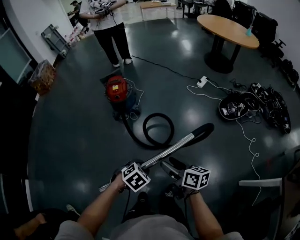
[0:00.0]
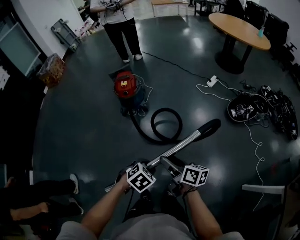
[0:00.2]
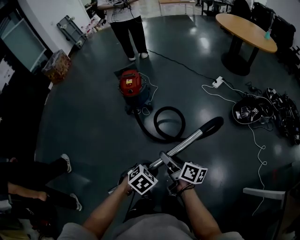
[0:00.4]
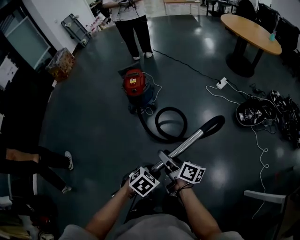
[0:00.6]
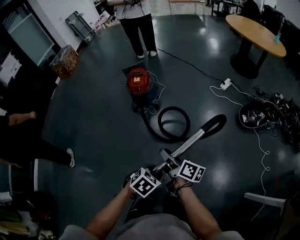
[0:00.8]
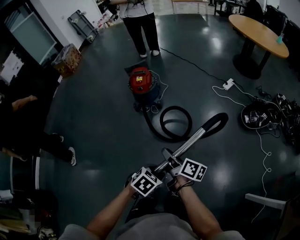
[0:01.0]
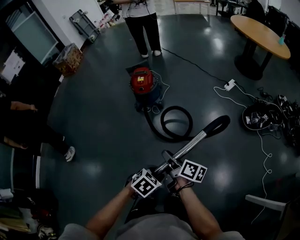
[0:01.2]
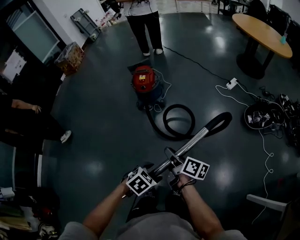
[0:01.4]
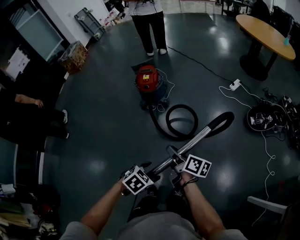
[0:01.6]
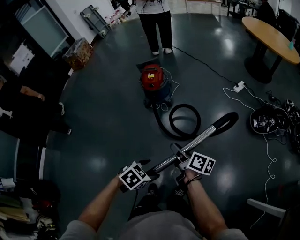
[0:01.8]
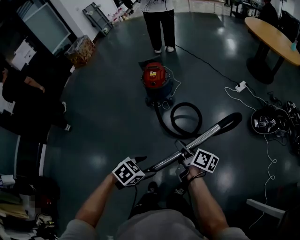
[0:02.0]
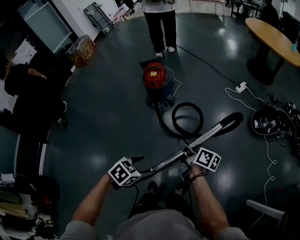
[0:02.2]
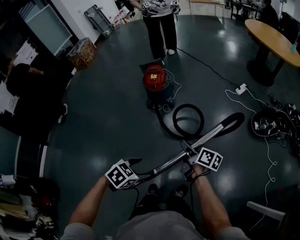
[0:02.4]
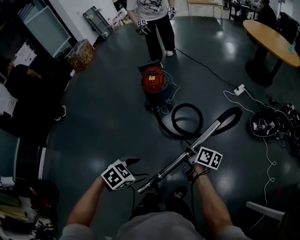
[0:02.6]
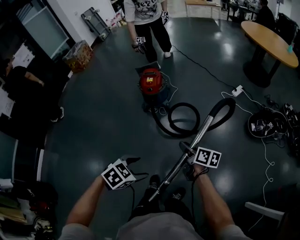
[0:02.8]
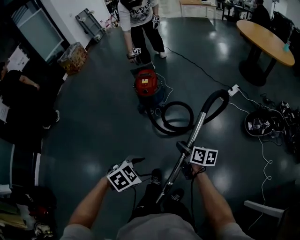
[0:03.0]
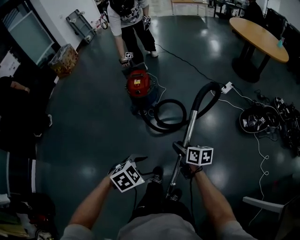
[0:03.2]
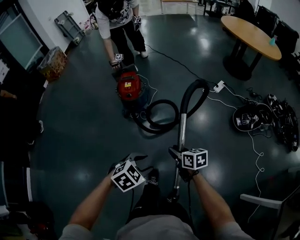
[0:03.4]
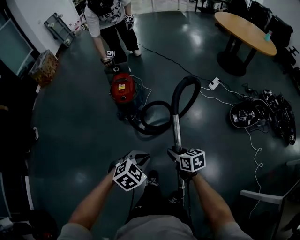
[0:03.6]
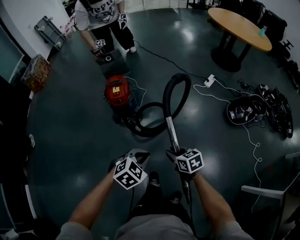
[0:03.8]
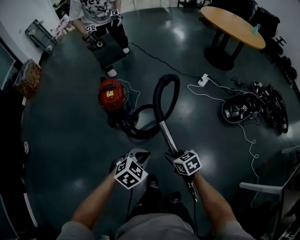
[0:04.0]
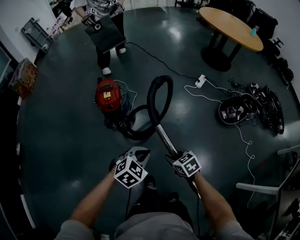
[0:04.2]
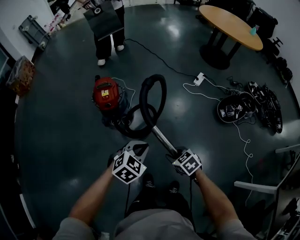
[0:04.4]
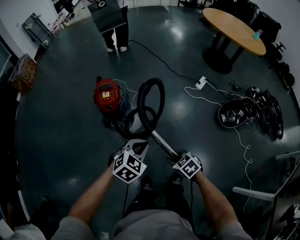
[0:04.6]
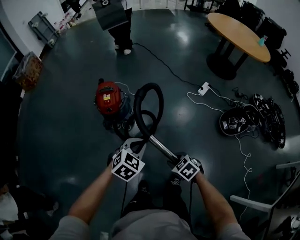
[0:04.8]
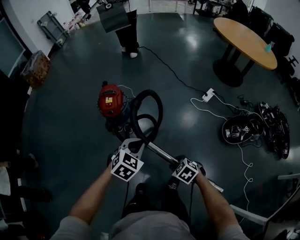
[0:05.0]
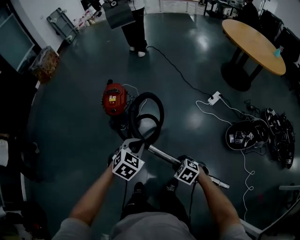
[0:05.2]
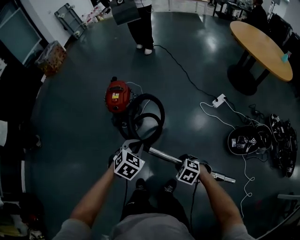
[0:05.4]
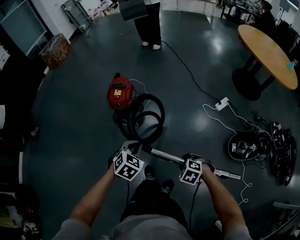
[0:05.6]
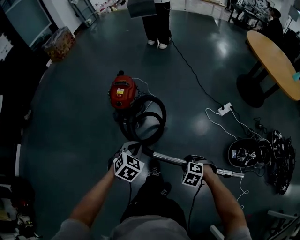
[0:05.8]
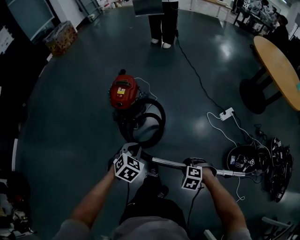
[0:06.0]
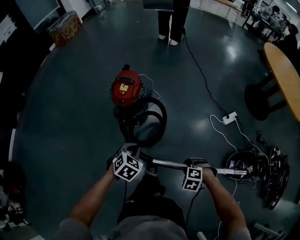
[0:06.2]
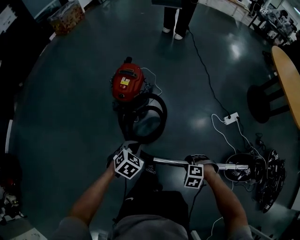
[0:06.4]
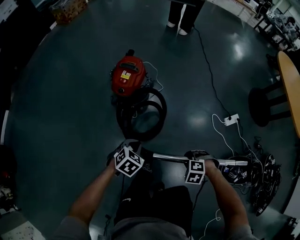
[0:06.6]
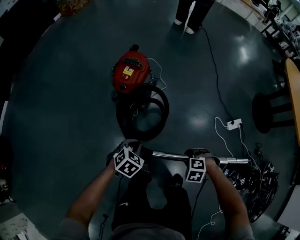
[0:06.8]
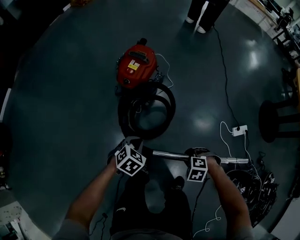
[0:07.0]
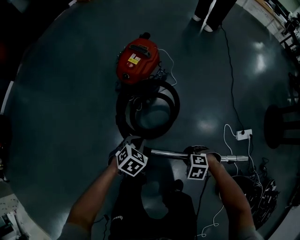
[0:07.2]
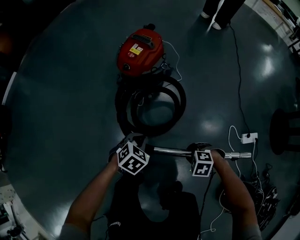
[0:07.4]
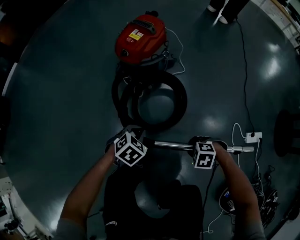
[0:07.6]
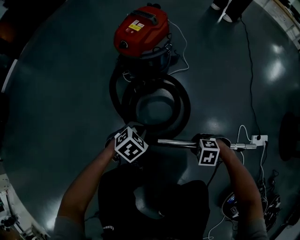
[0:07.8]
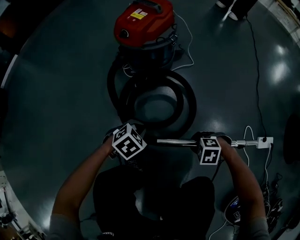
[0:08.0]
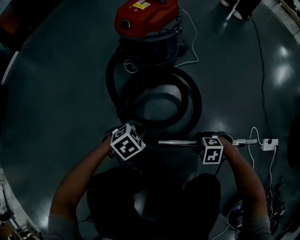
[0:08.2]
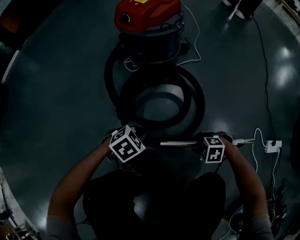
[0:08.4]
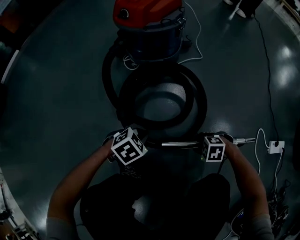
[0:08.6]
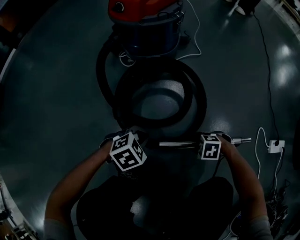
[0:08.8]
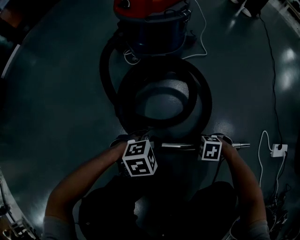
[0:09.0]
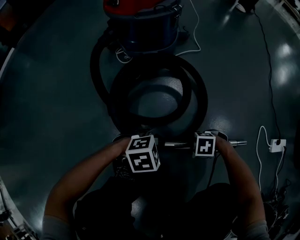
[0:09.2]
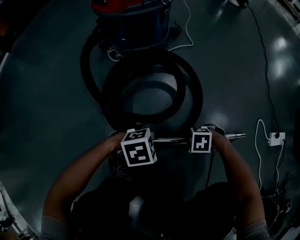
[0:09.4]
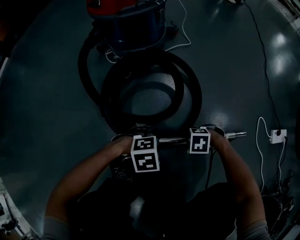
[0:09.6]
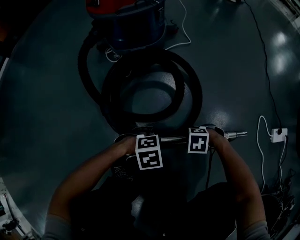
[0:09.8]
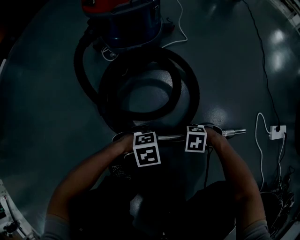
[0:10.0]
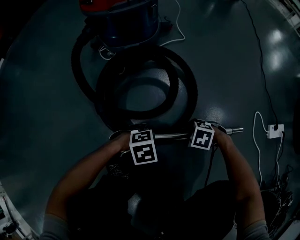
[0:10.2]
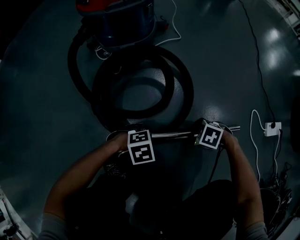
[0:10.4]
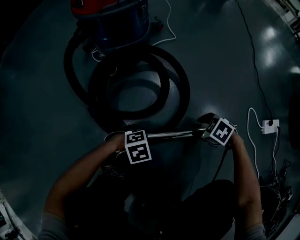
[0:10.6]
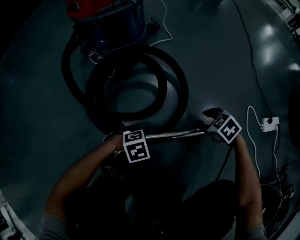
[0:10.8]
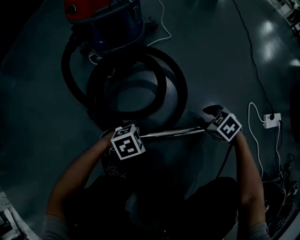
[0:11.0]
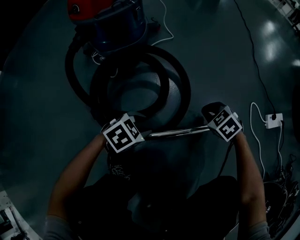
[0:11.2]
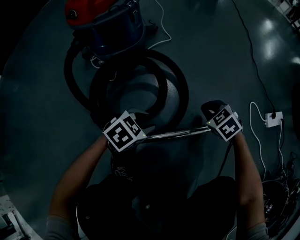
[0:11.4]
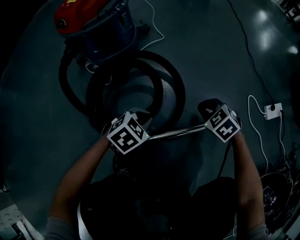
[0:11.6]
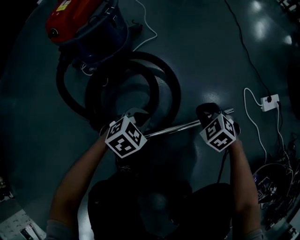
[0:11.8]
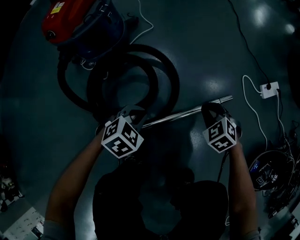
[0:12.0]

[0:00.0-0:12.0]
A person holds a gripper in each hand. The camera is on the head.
0:00.0 to 0:01.6: The left gripper opens up, while the right gripper goes approximately 10 cm forward and to the left, and closes.
0:01.6 to 0:03.0: The left gripper is displaced upward by approximately 5 cm, while the right gripper goes roughly 5 cm forward, and swivels approximately 20 degrees.
0:03.0 to 0:04.4: The left gripper shifts some 30 cm forward, swivels roughly 20 degrees, and closes its fingers. The right gripper moves forward and downward, about 15 cm, and tilts its fingers some 30 degrees downward.
0:04.4 to 0:06.0: The right gripper changes place by some 25 cm, and rolls counterclockwise, seen from behind, by approximately 60 degrees. The left gripper changes place by some 20 cm, and turns by approximately 40 degrees.
0:06.0 to 0:07.6: Both grippers move downward, about 35 cm. The right gripper swivels approximately 40 degrees. The left gripper rotates some 20 degrees.
0:07.6 to 0:09.0: The grippers both shift downward by about 30 cm. The left gripper changes its angle by approximately 30 degrees.
0:09.0 to 0:10.4: The left gripper heads downward, covering about 10 cm, and opens up. Meanwhile the right gripper shifts approximately 5 cm to the left, swivels roughly 20 degrees, and opens.
0:10.4 to 0:12.0: The grippers both shift upward by about 15 cm. The left gripper closes its fingers. Meanwhile the right gripper changes its angle by some 50 degrees, and closes.

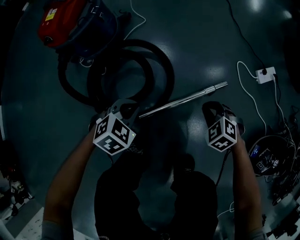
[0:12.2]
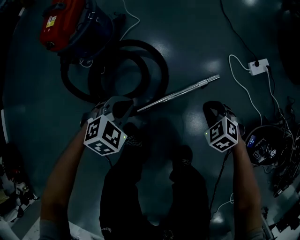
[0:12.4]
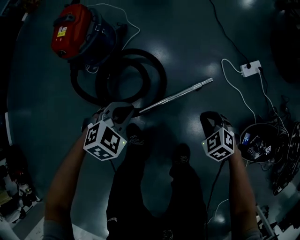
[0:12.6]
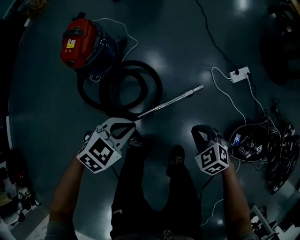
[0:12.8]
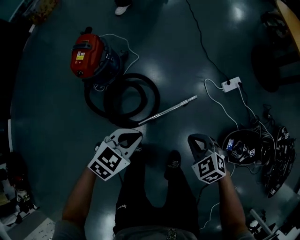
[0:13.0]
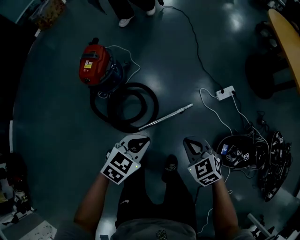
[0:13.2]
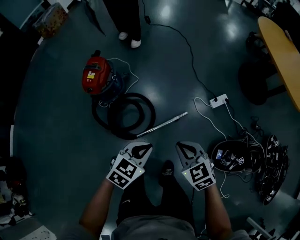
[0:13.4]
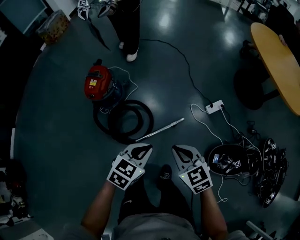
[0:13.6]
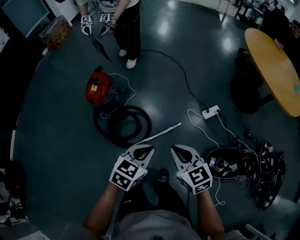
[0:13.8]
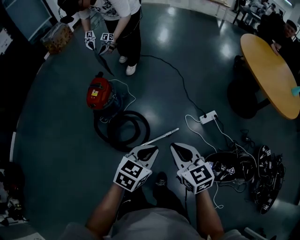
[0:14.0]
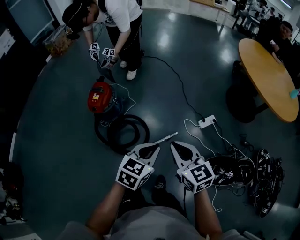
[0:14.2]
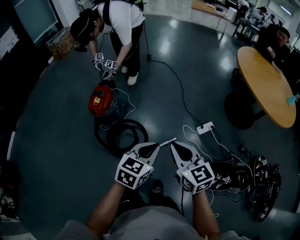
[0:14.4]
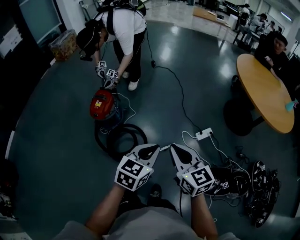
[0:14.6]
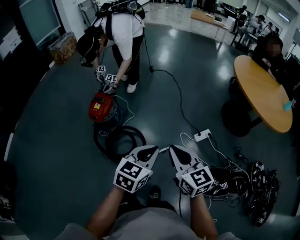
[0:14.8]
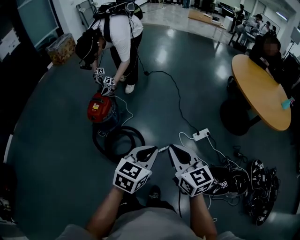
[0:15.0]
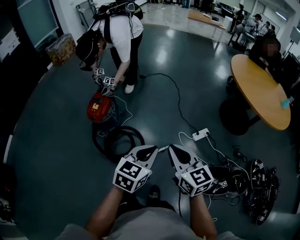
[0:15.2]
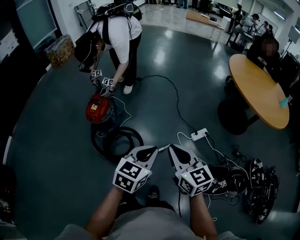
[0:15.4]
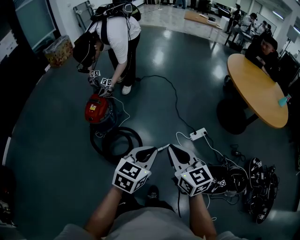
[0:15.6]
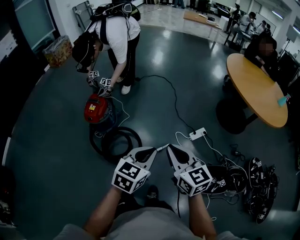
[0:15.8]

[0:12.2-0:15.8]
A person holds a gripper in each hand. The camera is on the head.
0:12.2 to 0:14.0: The two grippers go approximately 70 cm upward. The left gripper turns by about 30 degrees. Meanwhile the right gripper points its fingers about 40 degrees further upward.
0:14.0 to 0:15.8: Both grippers move upward, approximately 10 cm.

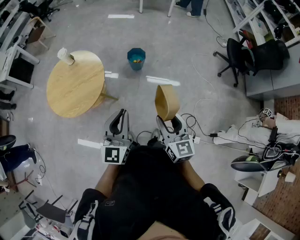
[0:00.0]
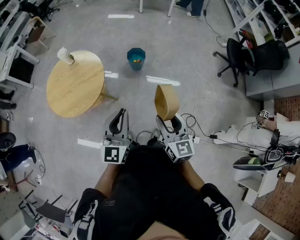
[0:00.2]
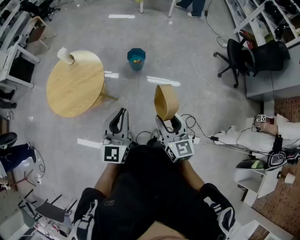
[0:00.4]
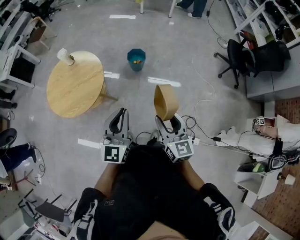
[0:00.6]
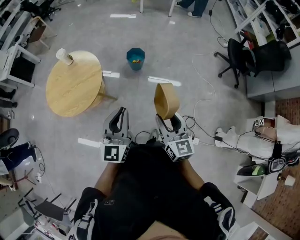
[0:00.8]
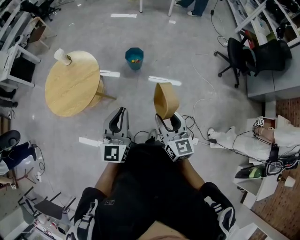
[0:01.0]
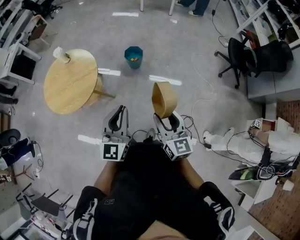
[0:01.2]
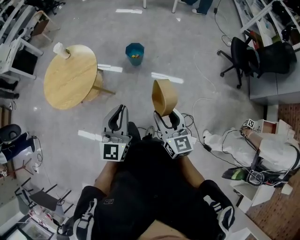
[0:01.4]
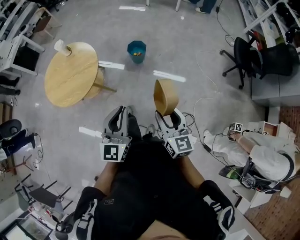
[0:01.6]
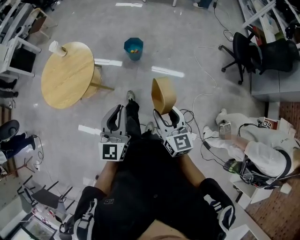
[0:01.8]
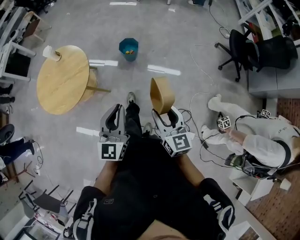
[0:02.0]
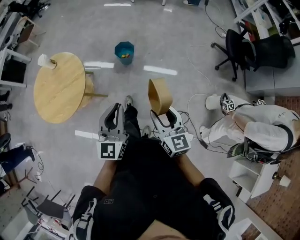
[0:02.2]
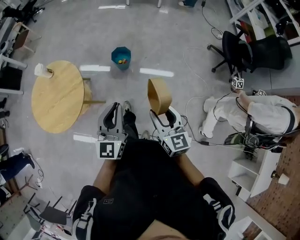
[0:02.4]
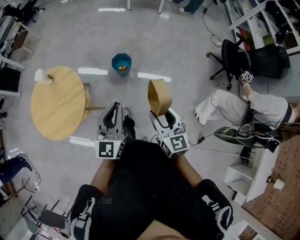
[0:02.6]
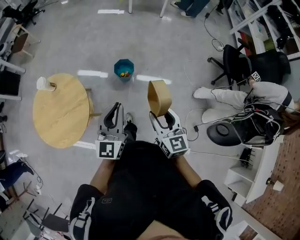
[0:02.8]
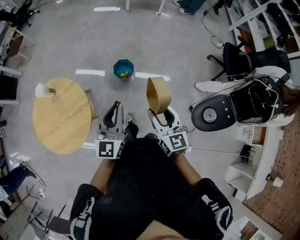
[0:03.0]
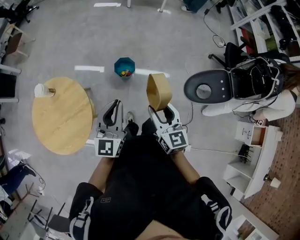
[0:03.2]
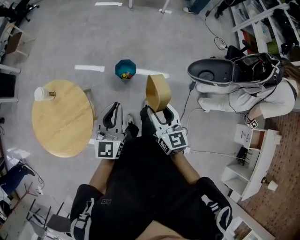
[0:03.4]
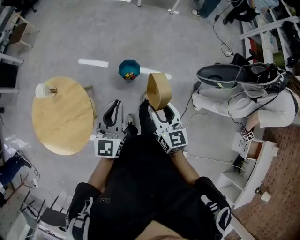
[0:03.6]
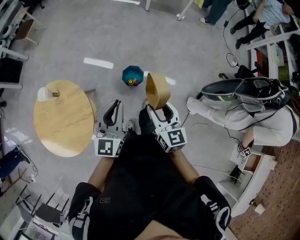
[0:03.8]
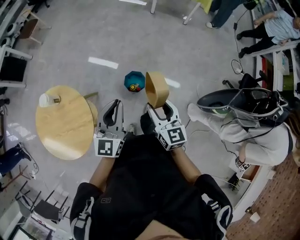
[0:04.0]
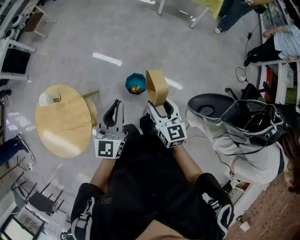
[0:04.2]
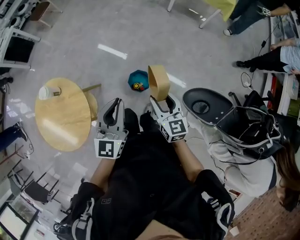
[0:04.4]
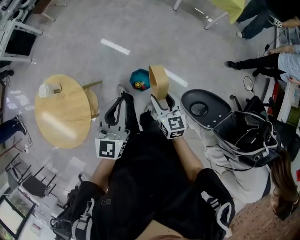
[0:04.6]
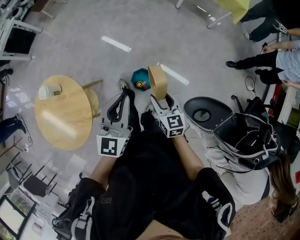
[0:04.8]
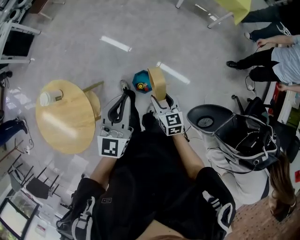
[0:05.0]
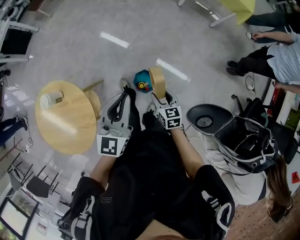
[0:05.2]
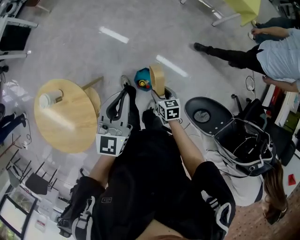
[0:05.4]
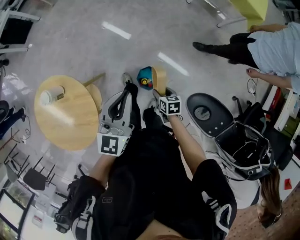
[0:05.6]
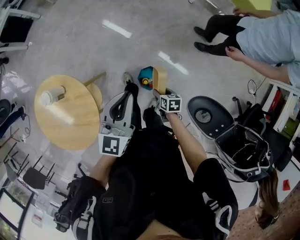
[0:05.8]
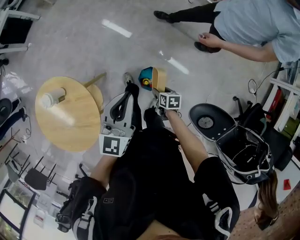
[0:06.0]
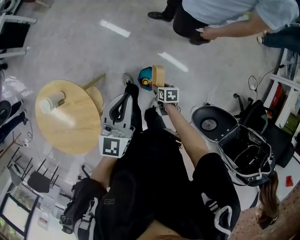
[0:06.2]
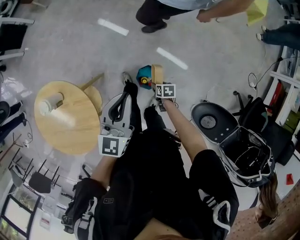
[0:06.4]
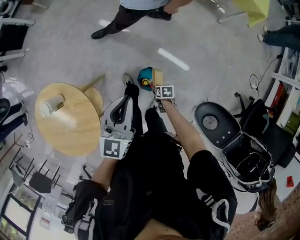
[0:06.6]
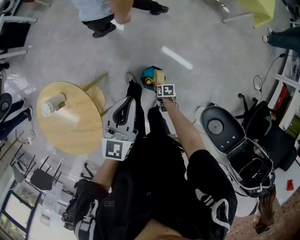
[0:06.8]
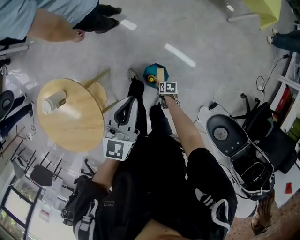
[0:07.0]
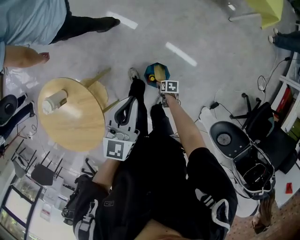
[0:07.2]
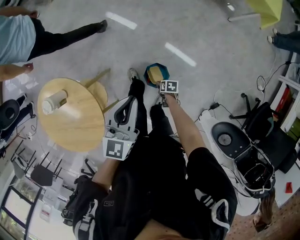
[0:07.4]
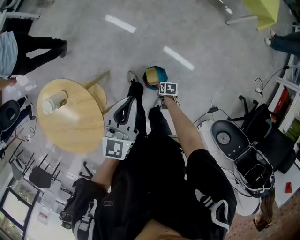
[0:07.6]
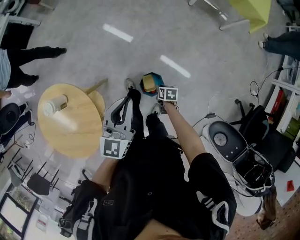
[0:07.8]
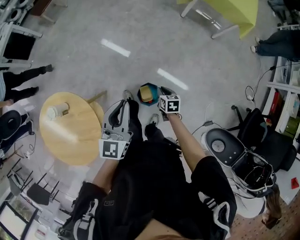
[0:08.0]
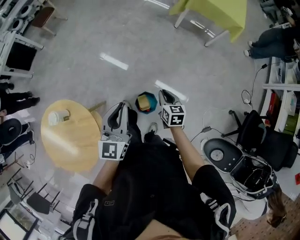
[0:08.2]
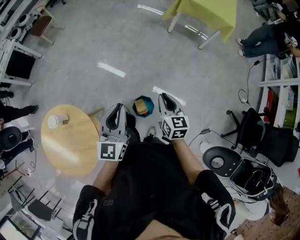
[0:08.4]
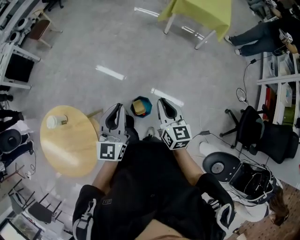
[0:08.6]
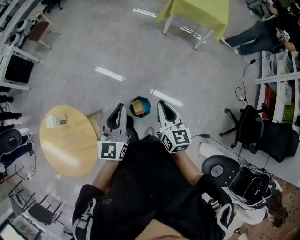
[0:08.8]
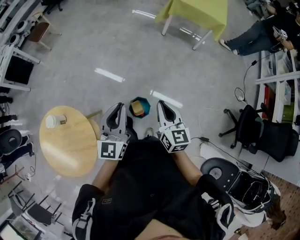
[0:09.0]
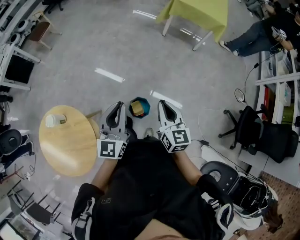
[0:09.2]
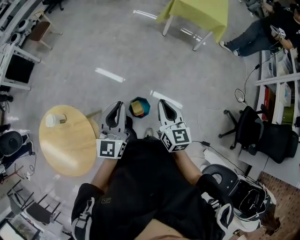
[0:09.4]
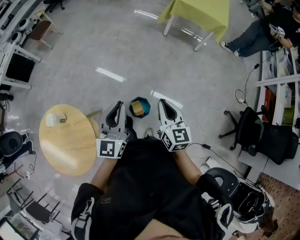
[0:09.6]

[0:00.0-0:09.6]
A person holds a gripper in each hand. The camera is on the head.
0:00.0 to 0:01.6: The grippers both shift to the right by approximately 10 cm.
0:01.6 to 0:03.2: The two grippers go about 35 cm forward.
0:03.2 to 0:04.8: The left gripper shifts about 30 cm forward, and turns by approximately 20 degrees, while the right gripper moves forward and downward, some 40 cm, and rotates roughly 30 degrees.
0:04.8 to 0:06.4: The left gripper goes approximately 15 cm forward and downward. The right gripper goes about 30 cm downward, and points its fingers about 40 degrees further downward.
0:06.4 to 0:08.0: The right gripper shifts some 10 cm upward, changes its angle by roughly 20 degrees, and closes.
0:08.0 to 0:09.6: The right gripper shifts some 30 cm upward, and angles its fingers upward, by some 40 degrees. Meanwhile the left gripper goes some 10 cm upward and to the right.
